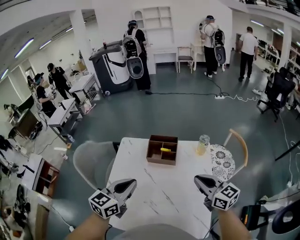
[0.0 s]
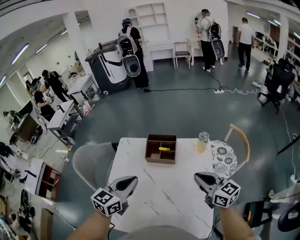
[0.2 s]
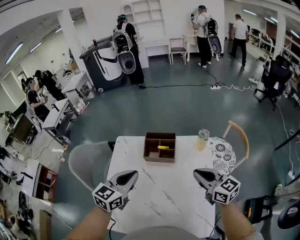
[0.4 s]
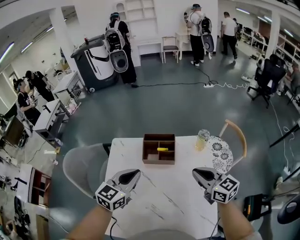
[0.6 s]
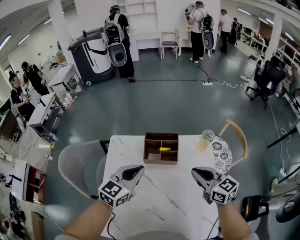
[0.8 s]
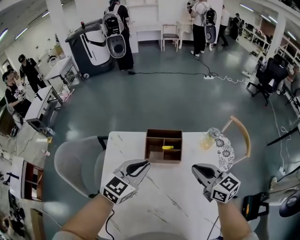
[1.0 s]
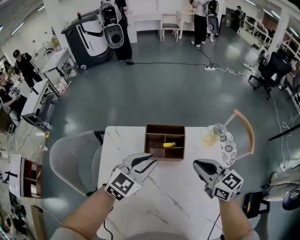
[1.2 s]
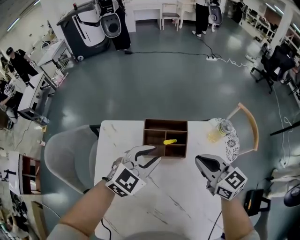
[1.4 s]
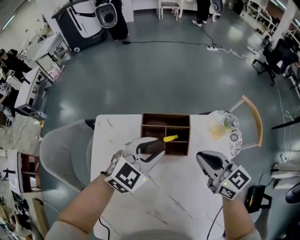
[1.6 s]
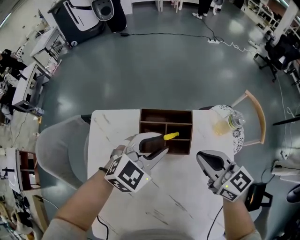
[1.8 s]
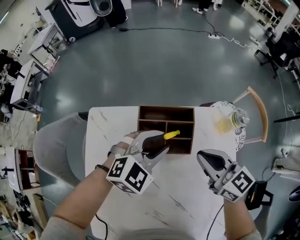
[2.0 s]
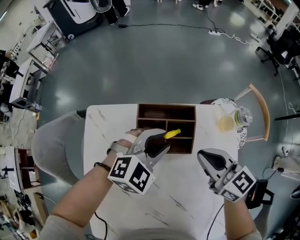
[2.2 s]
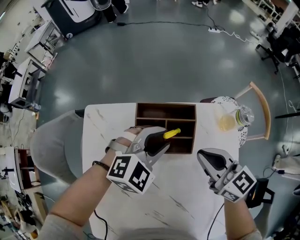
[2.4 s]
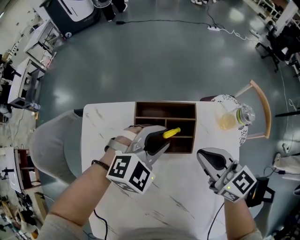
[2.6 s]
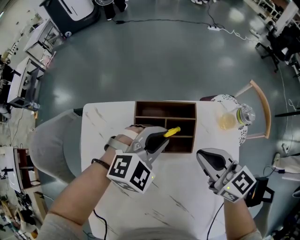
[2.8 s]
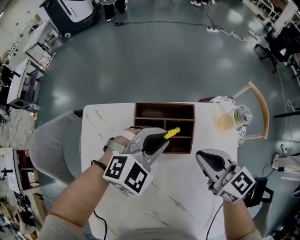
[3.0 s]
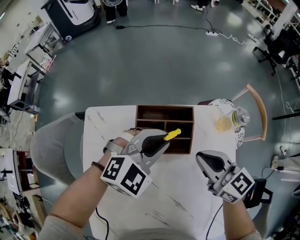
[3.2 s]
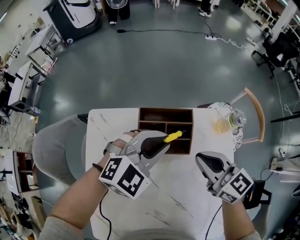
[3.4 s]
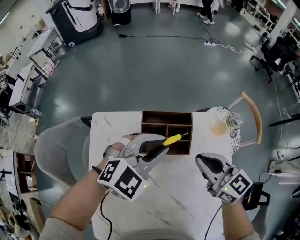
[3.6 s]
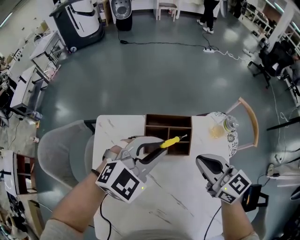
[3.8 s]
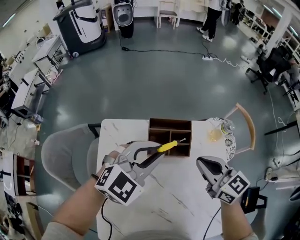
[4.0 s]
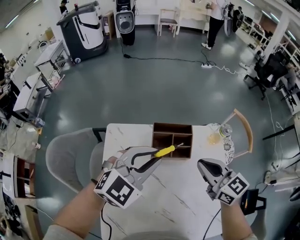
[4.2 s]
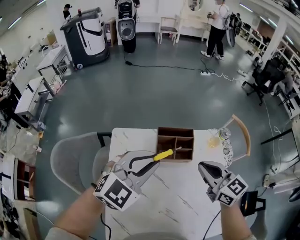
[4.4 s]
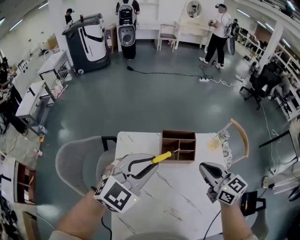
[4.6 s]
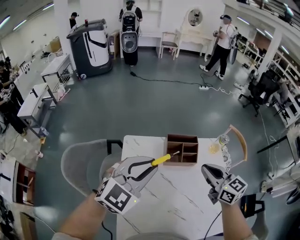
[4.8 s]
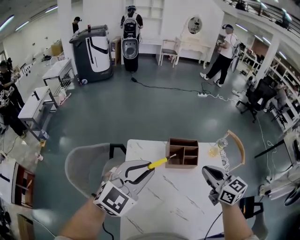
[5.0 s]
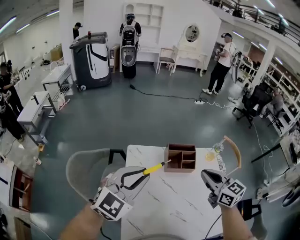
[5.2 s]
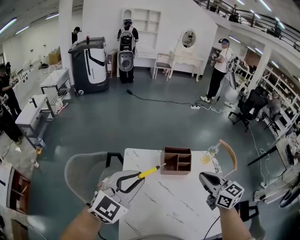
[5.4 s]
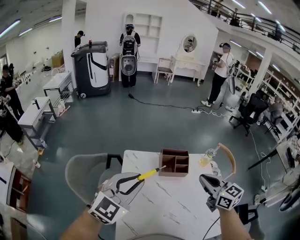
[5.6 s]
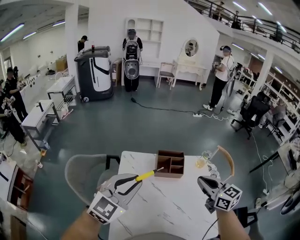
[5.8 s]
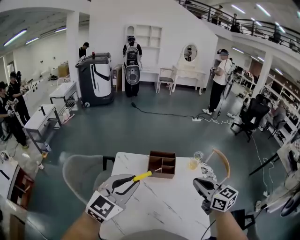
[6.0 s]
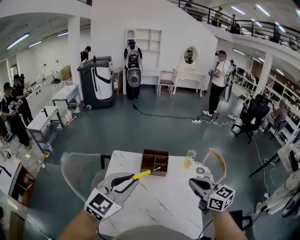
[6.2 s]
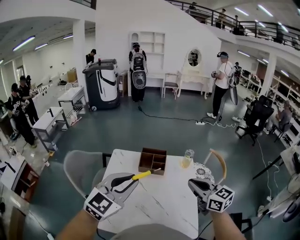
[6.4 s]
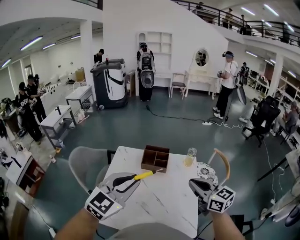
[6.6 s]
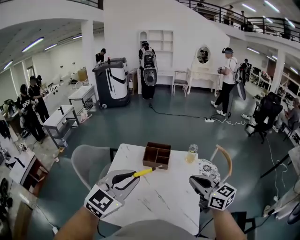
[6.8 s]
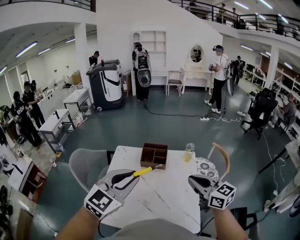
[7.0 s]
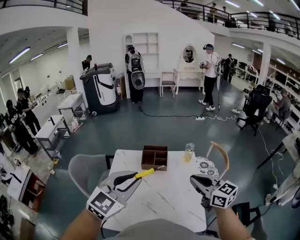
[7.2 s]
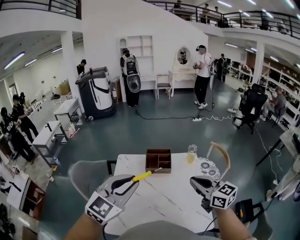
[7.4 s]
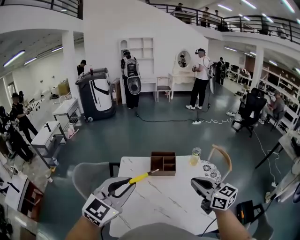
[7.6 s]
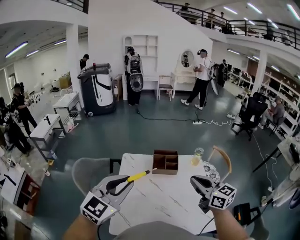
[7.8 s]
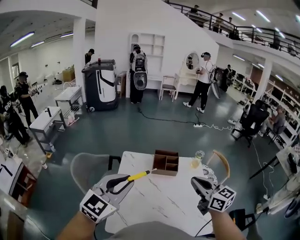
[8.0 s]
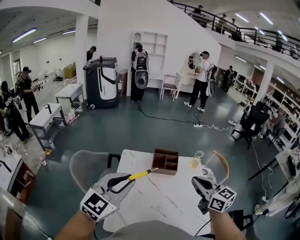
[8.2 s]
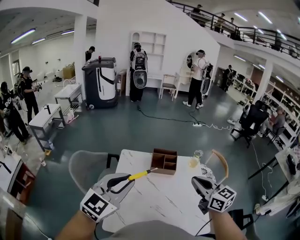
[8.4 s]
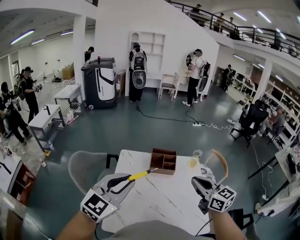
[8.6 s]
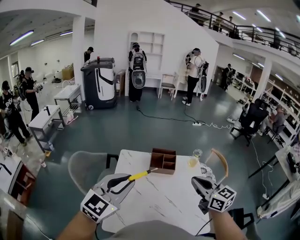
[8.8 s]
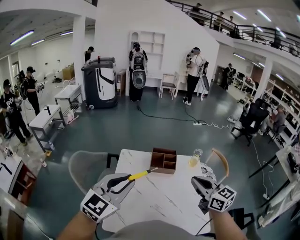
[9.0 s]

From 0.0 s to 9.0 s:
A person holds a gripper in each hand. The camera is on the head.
From 0.0 s to 1.6 s: The grippers both shift forward and downward by some 20 cm. The left gripper rotates roughly 40 degrees, and opens its fingers.
From 1.6 s to 3.0 s: The left gripper ends up approximately 5 cm from where it was, and rotates about 20 degrees.
From 3.0 s to 4.4 s: The right gripper is displaced upward and backward by some 15 cm. The left gripper moves upward, to the left and backward, some 25 cm.
From 4.4 s to 6.0 s: The two grippers go about 20 cm backward and upward.
From 6.0 s to 7.6 s: The two grippers go roughly 10 cm backward. The right gripper reaches some 10 cm to the right, then returns, while the left gripper goes to the right and returns, about 10 cm each way.
From 7.6 s to 9.0 s: There are only small adjustments of the grippers.

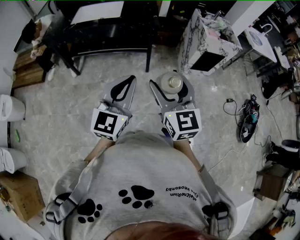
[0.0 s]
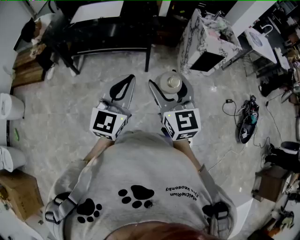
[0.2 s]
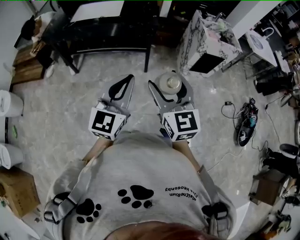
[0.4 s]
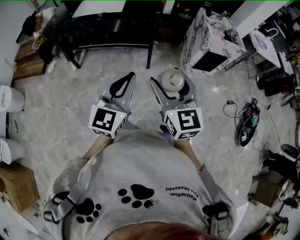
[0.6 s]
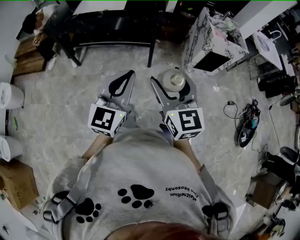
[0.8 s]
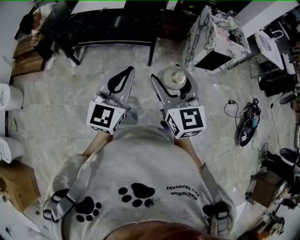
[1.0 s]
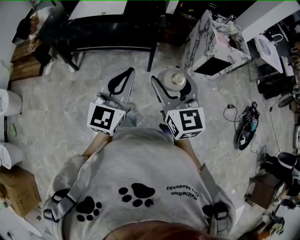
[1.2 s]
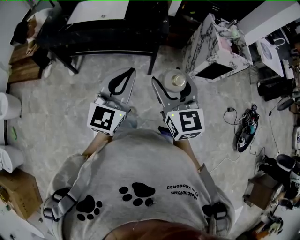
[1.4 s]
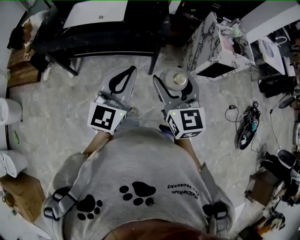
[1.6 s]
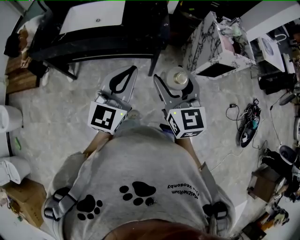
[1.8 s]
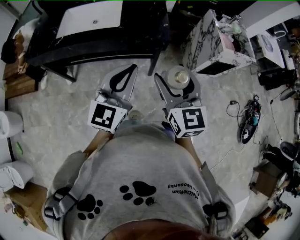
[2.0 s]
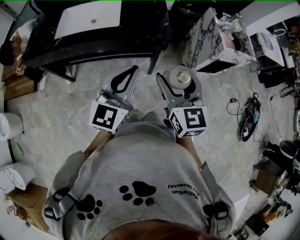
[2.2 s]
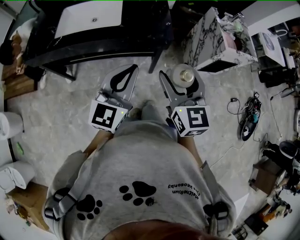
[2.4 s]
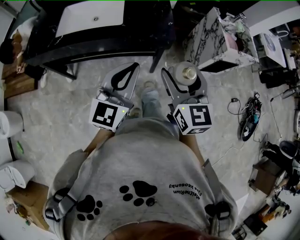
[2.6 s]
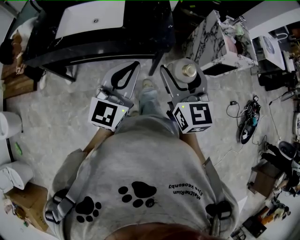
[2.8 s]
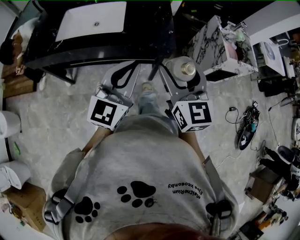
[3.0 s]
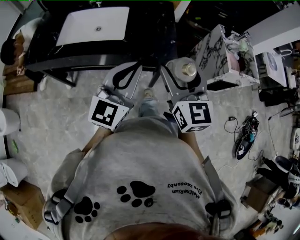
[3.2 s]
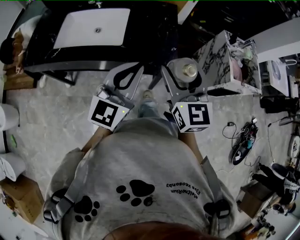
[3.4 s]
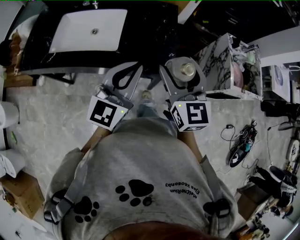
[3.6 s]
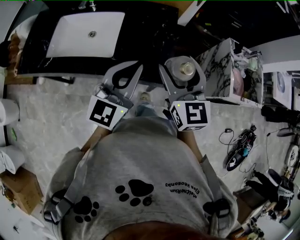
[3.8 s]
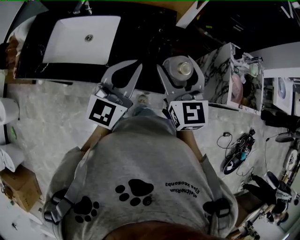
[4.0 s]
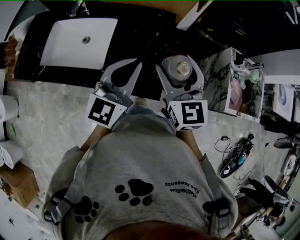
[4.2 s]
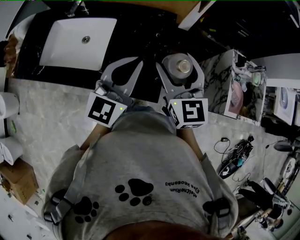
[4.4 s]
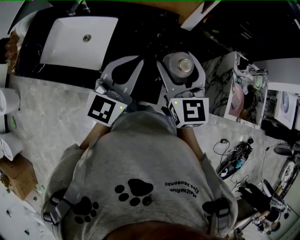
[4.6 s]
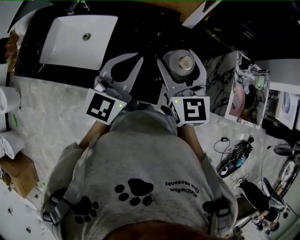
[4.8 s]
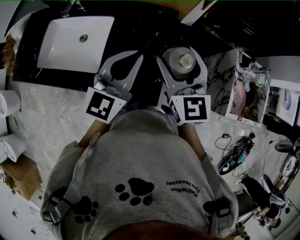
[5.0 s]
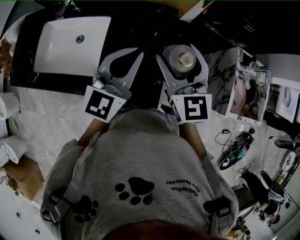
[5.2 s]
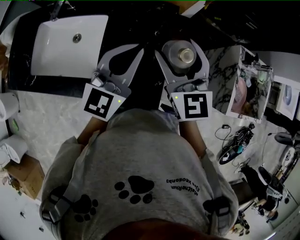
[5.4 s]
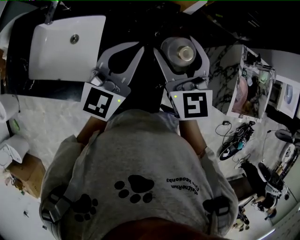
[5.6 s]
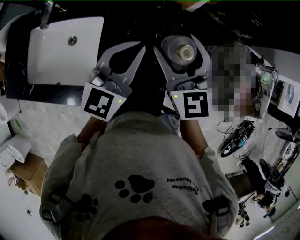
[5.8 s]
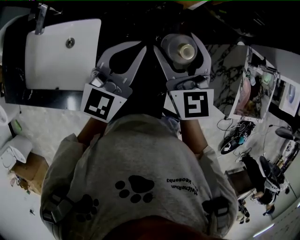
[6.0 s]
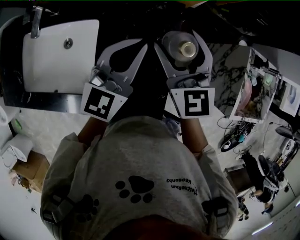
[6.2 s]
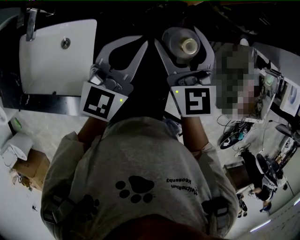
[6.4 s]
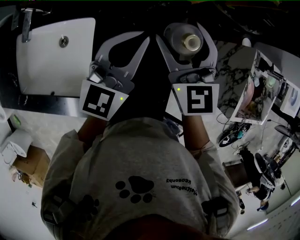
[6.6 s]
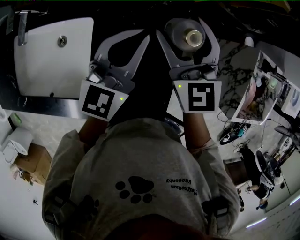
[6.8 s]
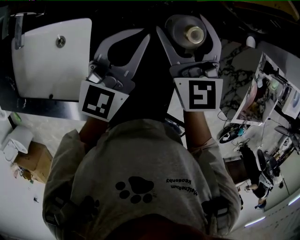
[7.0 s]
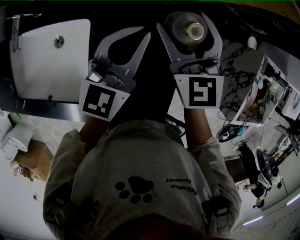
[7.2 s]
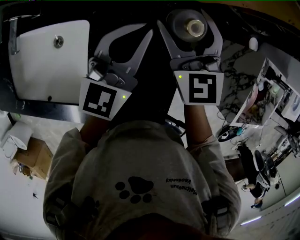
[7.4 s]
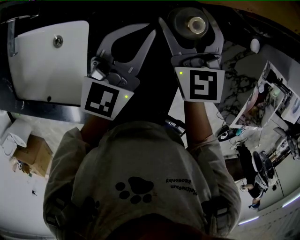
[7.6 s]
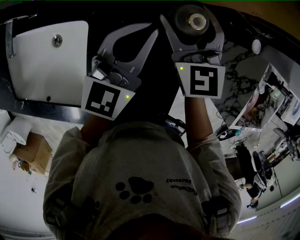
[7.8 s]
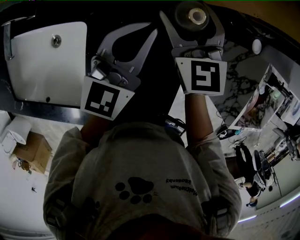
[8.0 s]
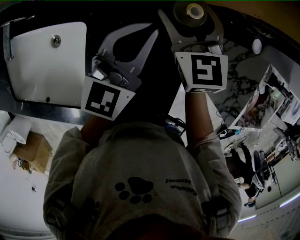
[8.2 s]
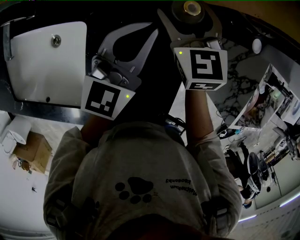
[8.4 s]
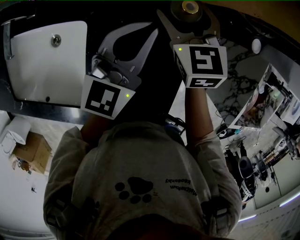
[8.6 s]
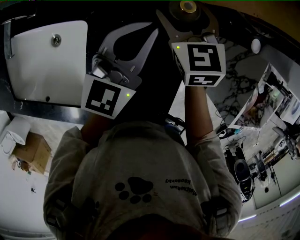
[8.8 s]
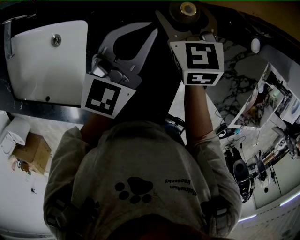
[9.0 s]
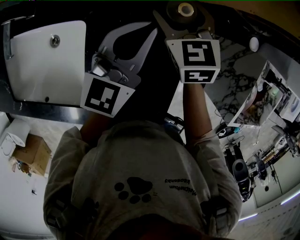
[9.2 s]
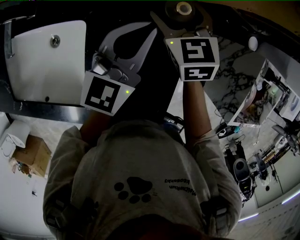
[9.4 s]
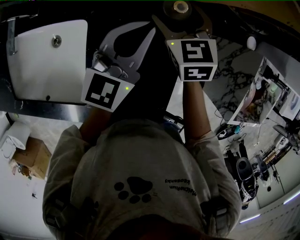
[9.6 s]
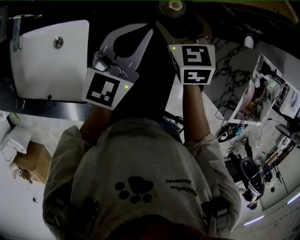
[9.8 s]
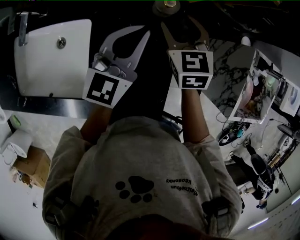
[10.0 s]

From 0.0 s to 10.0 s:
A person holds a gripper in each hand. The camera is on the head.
From 0.0 s to 1.4 s: Both grippers move forward, about 20 cm.
From 1.4 s to 2.8 s: Both grippers travel together forward, roughly 15 cm.
From 2.8 s to 4.2 s: Both grippers travel together forward, approximately 35 cm.
From 4.2 s to 5.8 s: The two grippers go approximately 15 cm forward.
From 5.8 s to 7.2 s: Both grippers move forward and downward, roughly 15 cm.
From 7.2 s to 8.6 s: The right gripper shifts some 10 cm downward and forward.
From 8.6 s to 10.0 s: The left gripper shifts by approximately 5 cm, while the right gripper is displaced backward by some 5 cm.

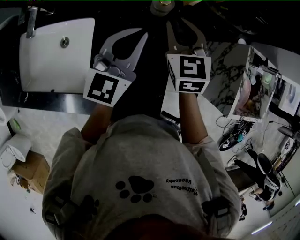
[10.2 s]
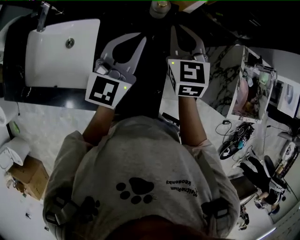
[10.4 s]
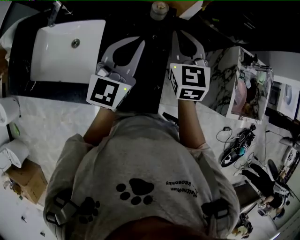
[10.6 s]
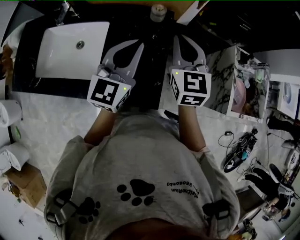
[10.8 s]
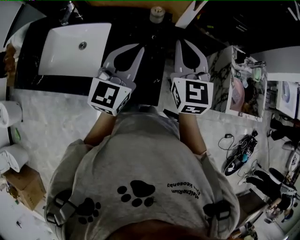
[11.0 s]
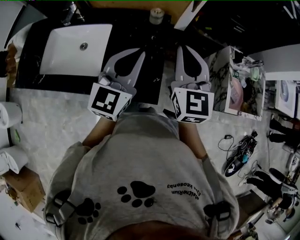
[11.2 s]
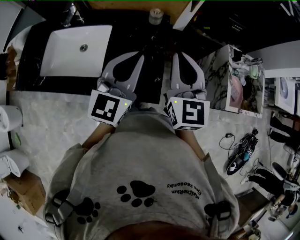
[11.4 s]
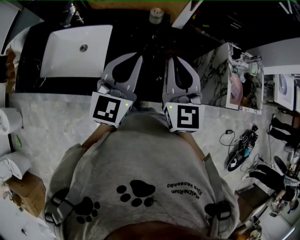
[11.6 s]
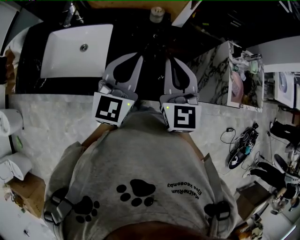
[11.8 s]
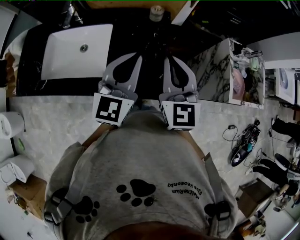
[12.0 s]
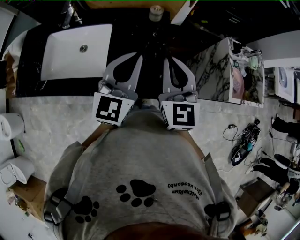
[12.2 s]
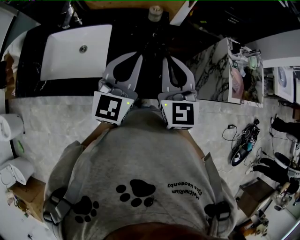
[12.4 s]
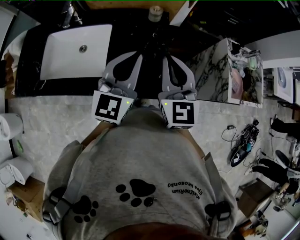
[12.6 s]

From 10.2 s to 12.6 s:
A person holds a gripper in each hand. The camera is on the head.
From 10.2 s to 11.4 s: The two grippers go approximately 25 cm backward and upward. The right gripper rotates about 20 degrees.
From 11.4 s to 12.6 s: The right gripper moves some 5 cm.

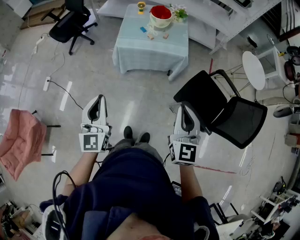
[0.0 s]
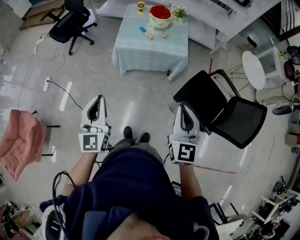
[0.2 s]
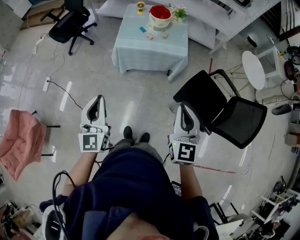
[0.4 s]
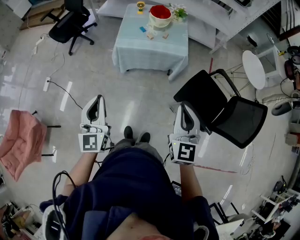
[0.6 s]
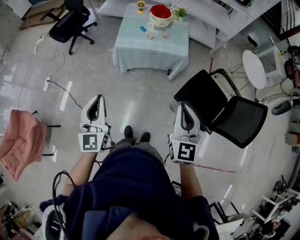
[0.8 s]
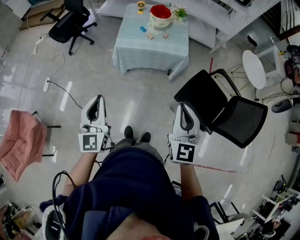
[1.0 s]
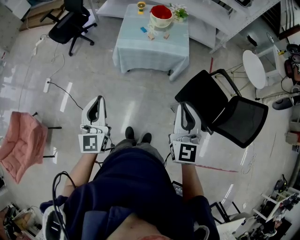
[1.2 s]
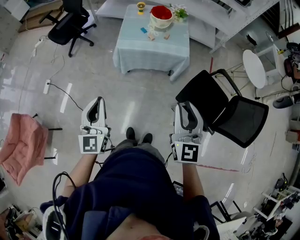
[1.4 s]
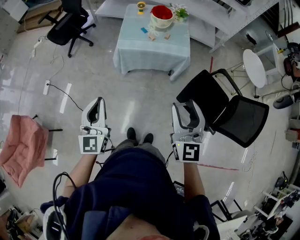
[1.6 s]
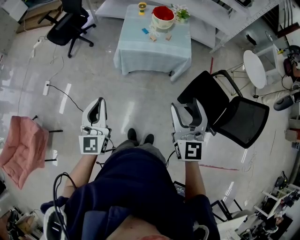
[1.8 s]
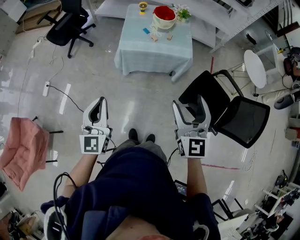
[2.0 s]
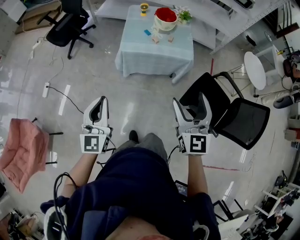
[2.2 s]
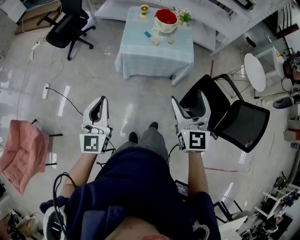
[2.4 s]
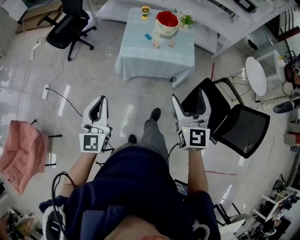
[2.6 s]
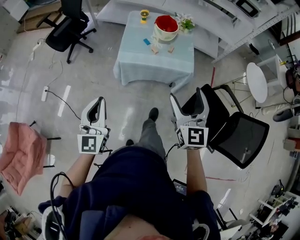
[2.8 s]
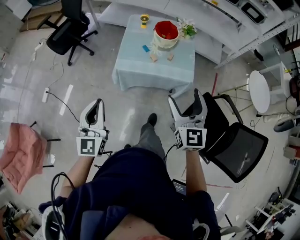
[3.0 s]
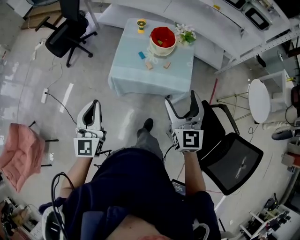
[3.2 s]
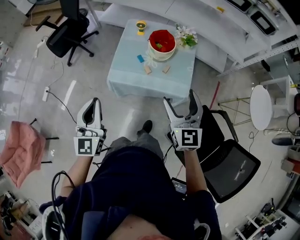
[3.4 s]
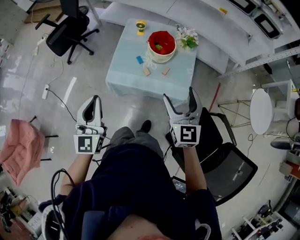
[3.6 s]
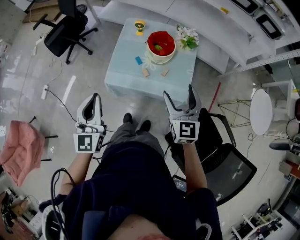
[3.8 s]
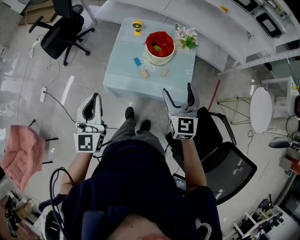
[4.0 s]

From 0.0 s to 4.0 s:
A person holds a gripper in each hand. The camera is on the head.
From 0.0 s to 1.4 s: The grippers make only small movements.
From 1.4 s to 2.6 s: Both grippers move forward, roughly 10 cm. The right gripper opens up.
From 2.6 s to 4.0 s: The left gripper is displaced forward and to the right by some 35 cm. The right gripper shifts roughly 35 cm forward.
